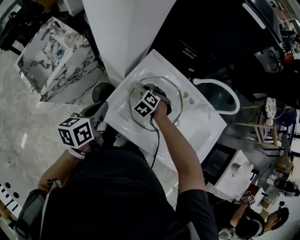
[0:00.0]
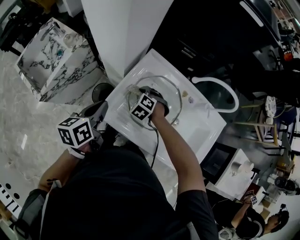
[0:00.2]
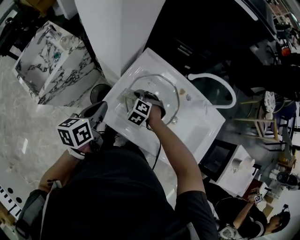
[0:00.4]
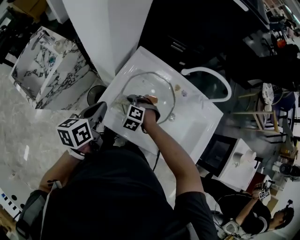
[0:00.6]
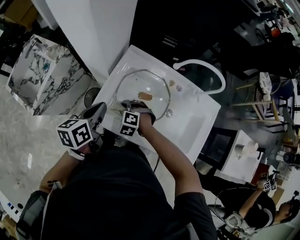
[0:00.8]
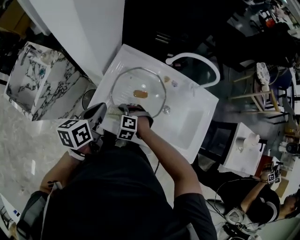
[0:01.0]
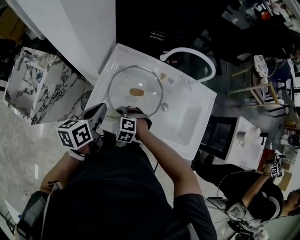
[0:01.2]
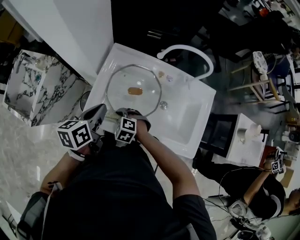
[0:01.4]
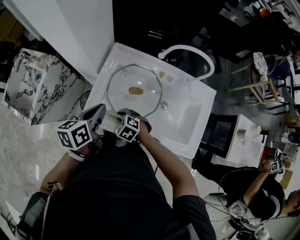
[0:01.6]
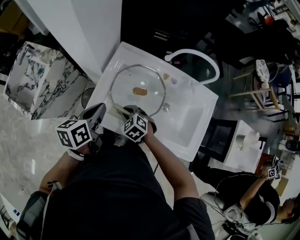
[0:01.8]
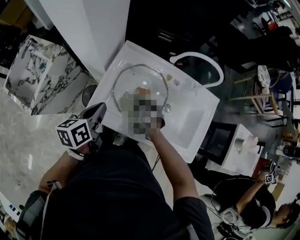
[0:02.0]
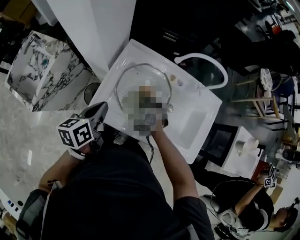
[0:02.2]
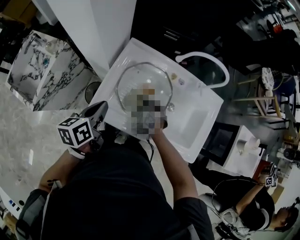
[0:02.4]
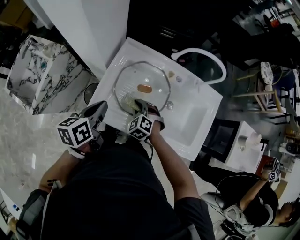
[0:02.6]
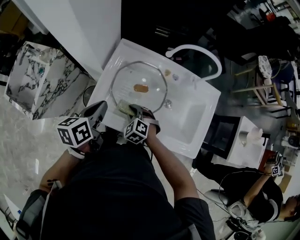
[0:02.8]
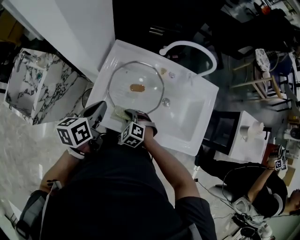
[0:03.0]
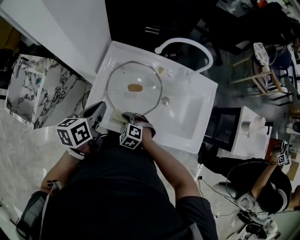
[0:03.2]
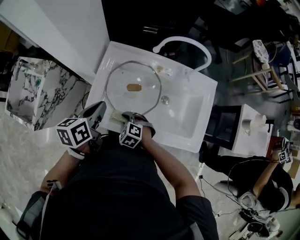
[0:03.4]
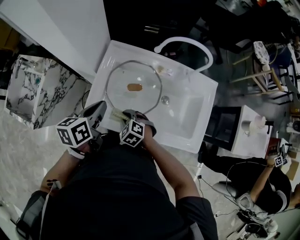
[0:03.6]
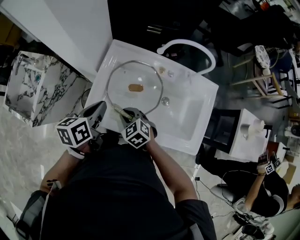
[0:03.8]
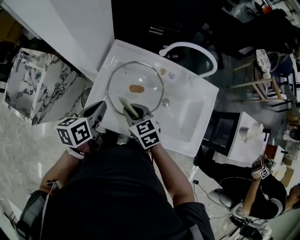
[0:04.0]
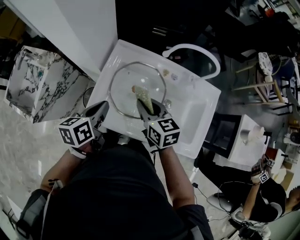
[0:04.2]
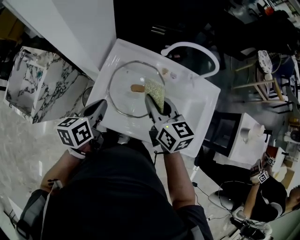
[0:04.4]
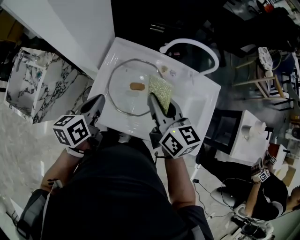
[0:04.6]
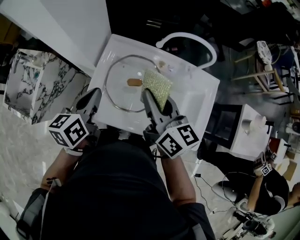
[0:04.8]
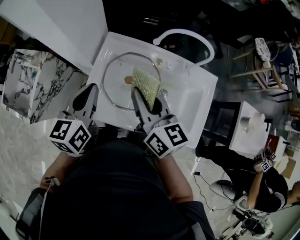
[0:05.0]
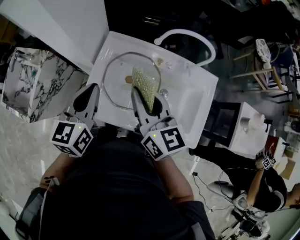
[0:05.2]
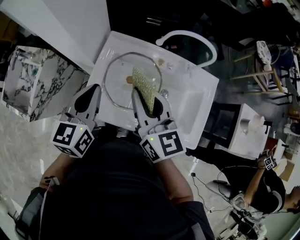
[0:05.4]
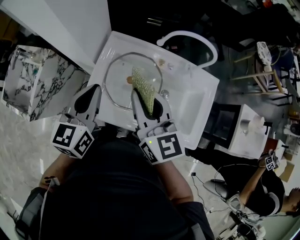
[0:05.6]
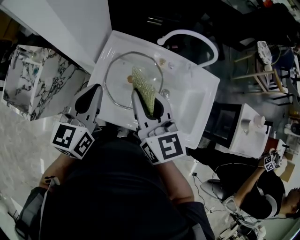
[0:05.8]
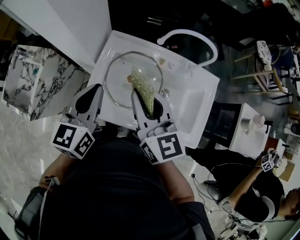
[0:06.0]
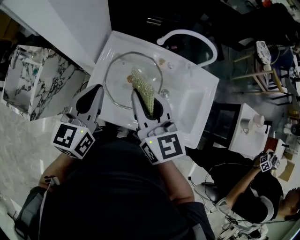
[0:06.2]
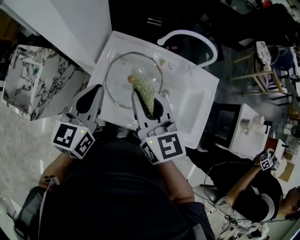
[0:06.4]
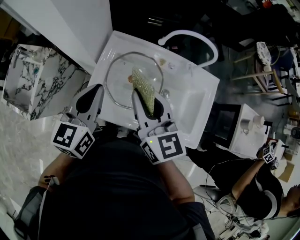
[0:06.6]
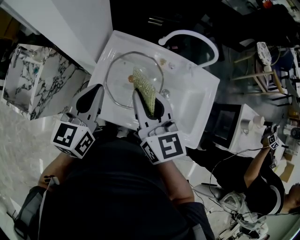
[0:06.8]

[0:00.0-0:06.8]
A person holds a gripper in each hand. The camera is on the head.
0:00.0 to 0:01.4: The left gripper travels to the right by some 10 cm. Meanwhile the right gripper moves backward, about 15 cm.
0:01.4 to 0:02.8: The right gripper goes forward and returns, roughly 10 cm each way.
0:02.8 to 0:04.0: The right gripper heads upward, covering some 10 cm, and changes its angle by some 40 degrees.
0:04.0 to 0:05.4: The left gripper goes some 10 cm upward, and swivels approximately 30 degrees, while the right gripper travels upward by about 20 cm, and points its fingers approximately 30 degrees further upward.
0:05.4 to 0:06.8: The grippers move only a little.

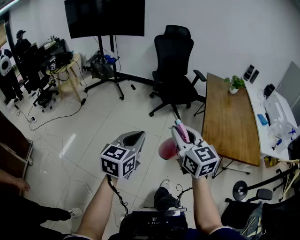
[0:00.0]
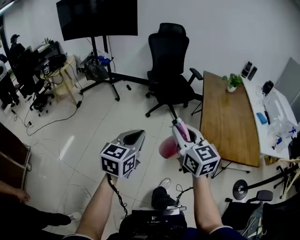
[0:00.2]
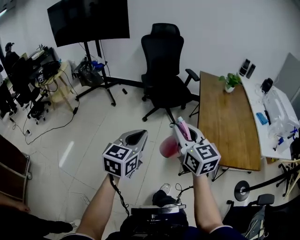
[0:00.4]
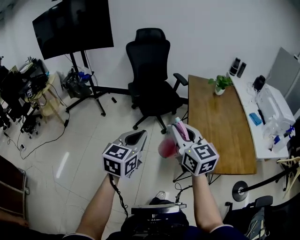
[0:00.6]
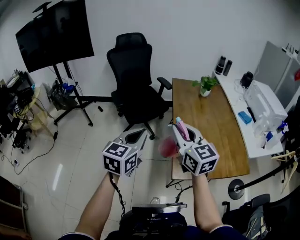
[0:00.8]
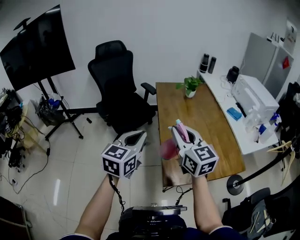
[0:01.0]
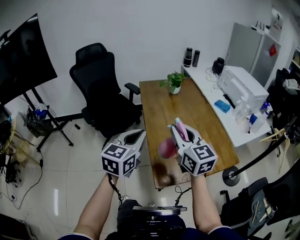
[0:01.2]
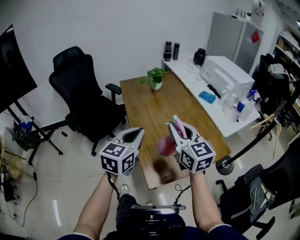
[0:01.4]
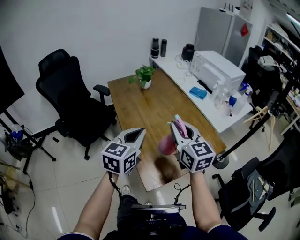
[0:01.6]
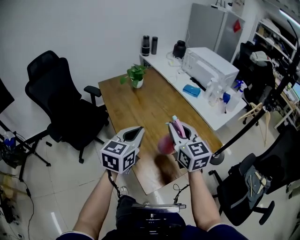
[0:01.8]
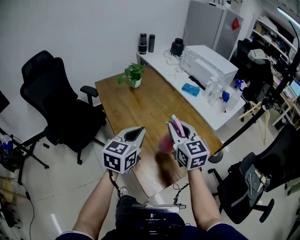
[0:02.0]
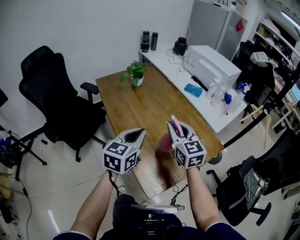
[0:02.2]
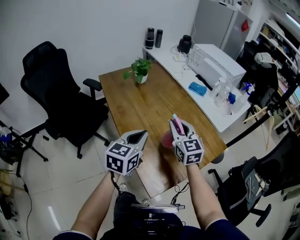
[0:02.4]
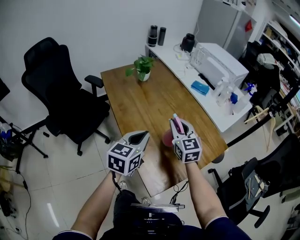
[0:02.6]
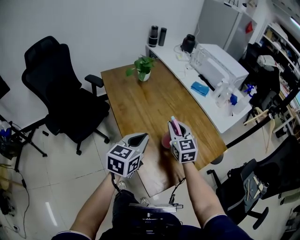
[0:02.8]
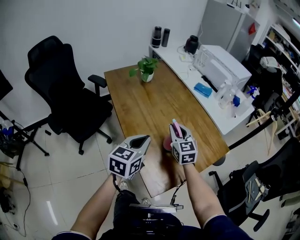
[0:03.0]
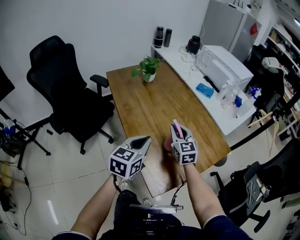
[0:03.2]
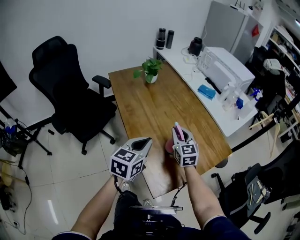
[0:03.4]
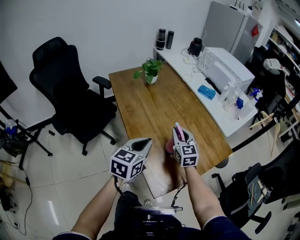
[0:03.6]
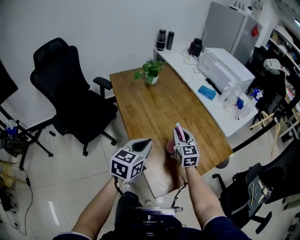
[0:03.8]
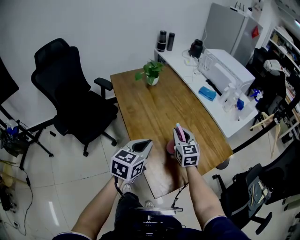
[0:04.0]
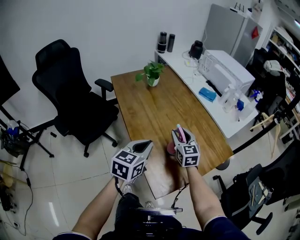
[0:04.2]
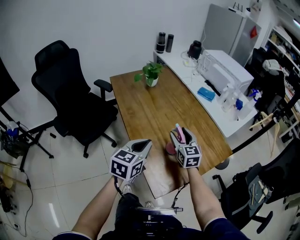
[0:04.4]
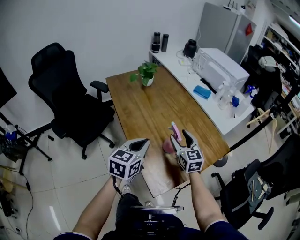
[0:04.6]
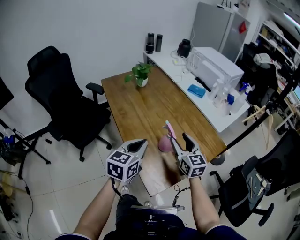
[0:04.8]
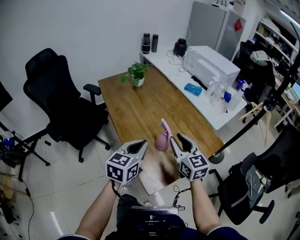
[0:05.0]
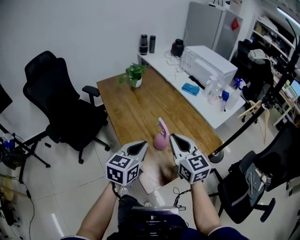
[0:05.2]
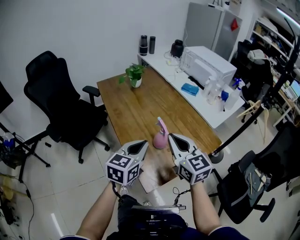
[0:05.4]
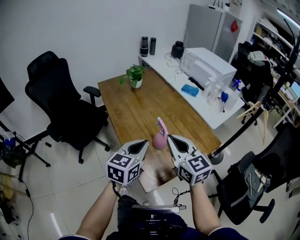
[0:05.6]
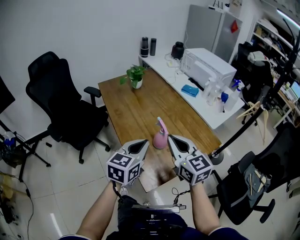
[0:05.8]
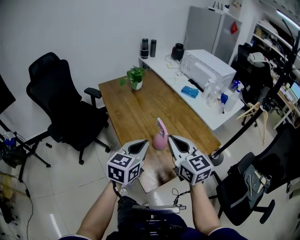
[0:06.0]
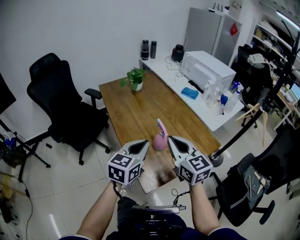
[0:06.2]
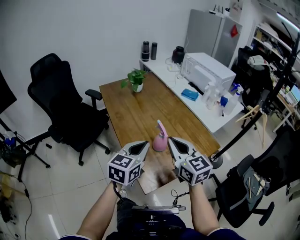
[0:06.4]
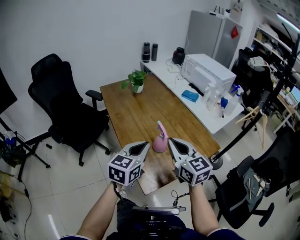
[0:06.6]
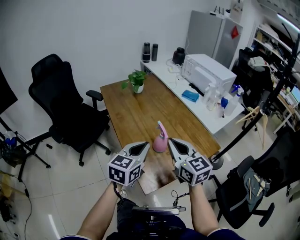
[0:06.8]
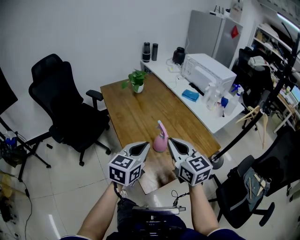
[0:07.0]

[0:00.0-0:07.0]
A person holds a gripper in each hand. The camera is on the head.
0:00.0 to 0:01.4: The two grippers travel together, some 50 cm. The left gripper changes its angle by about 40 degrees; the right gripper turns by about 40 degrees.
0:01.4 to 0:02.8: The right gripper moves downward and forward, approximately 20 cm, and turns by roughly 20 degrees. The left gripper travels downward and forward by roughly 10 cm.
0:02.8 to 0:04.2: The grippers make only small movements.
0:04.2 to 0:05.6: The left gripper shifts some 5 cm to the right, while the right gripper travels backward and upward by about 20 cm, and closes up.
0:05.6 to 0:07.0: The two grippers keep their place.

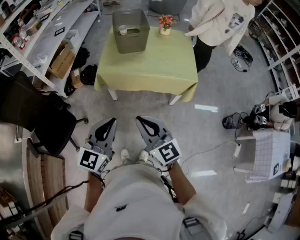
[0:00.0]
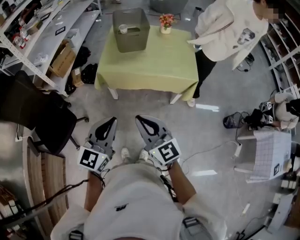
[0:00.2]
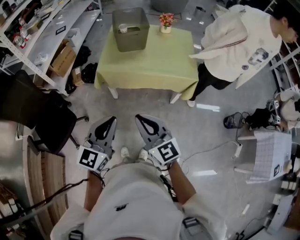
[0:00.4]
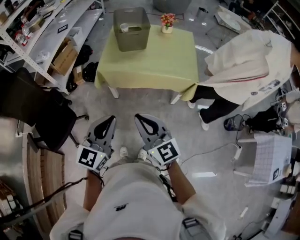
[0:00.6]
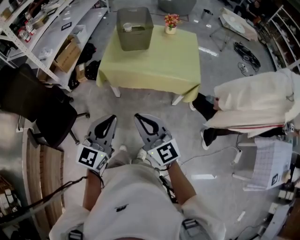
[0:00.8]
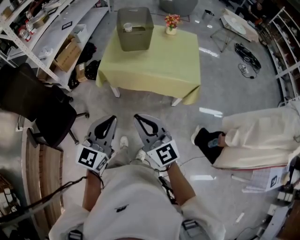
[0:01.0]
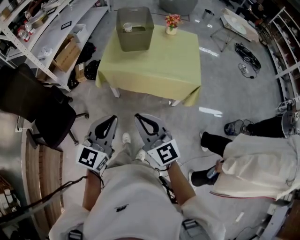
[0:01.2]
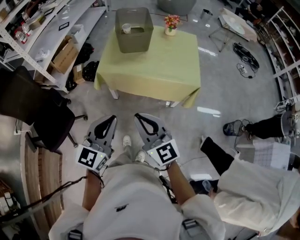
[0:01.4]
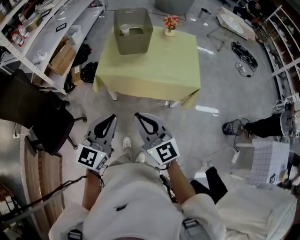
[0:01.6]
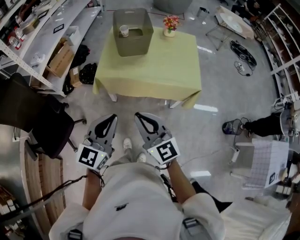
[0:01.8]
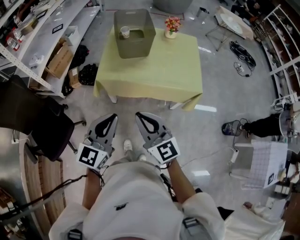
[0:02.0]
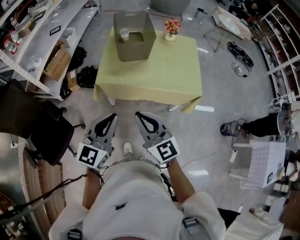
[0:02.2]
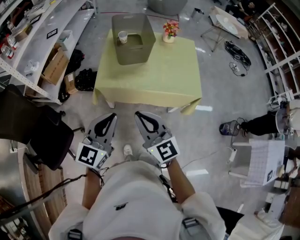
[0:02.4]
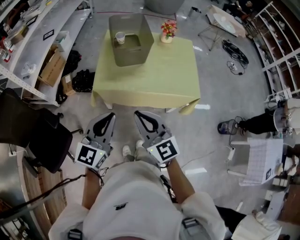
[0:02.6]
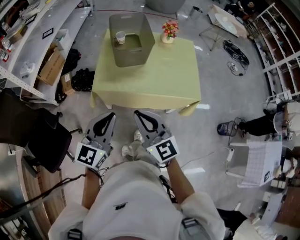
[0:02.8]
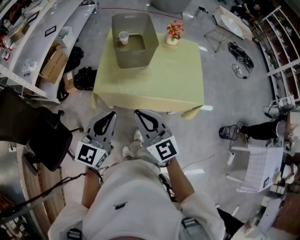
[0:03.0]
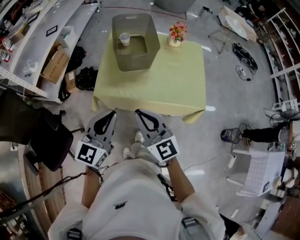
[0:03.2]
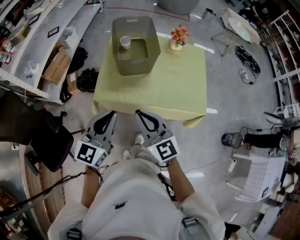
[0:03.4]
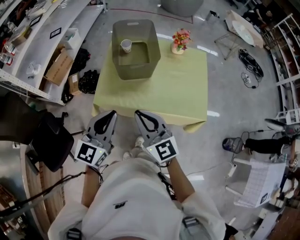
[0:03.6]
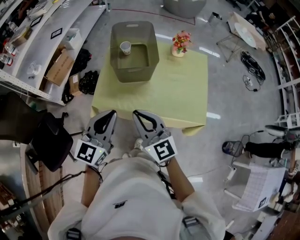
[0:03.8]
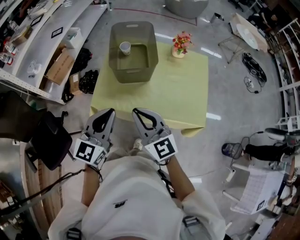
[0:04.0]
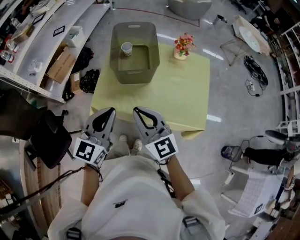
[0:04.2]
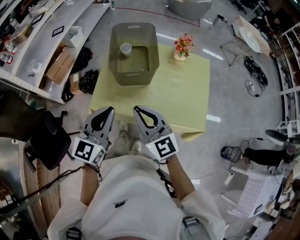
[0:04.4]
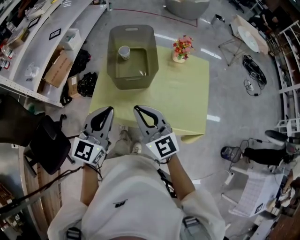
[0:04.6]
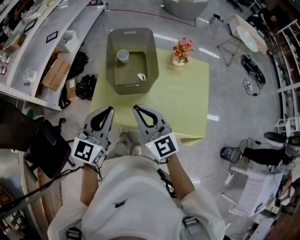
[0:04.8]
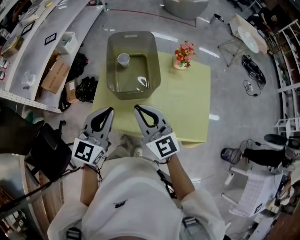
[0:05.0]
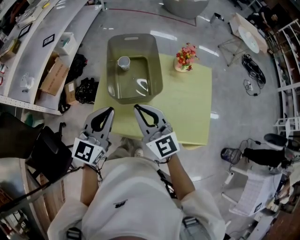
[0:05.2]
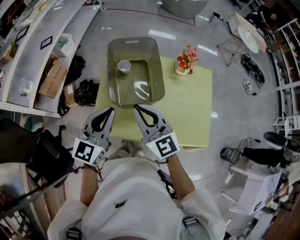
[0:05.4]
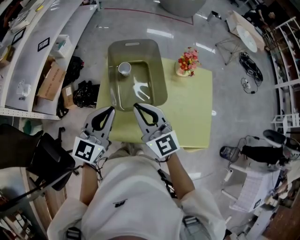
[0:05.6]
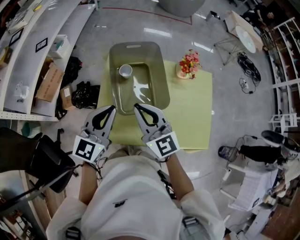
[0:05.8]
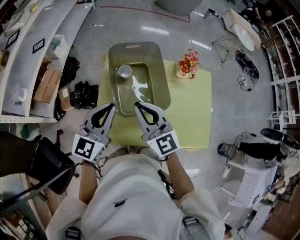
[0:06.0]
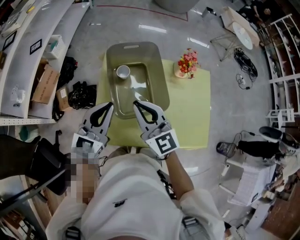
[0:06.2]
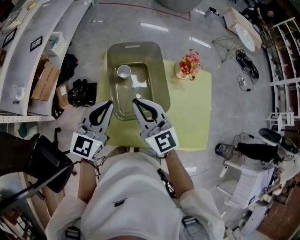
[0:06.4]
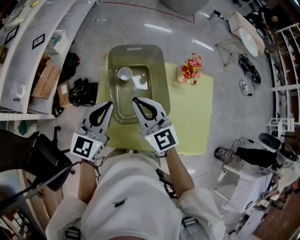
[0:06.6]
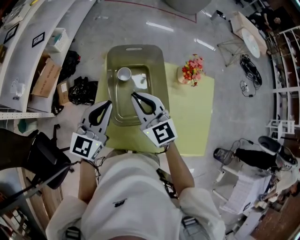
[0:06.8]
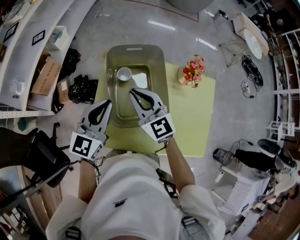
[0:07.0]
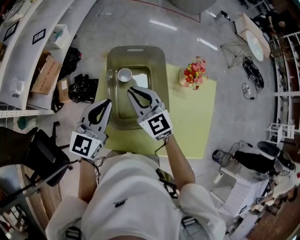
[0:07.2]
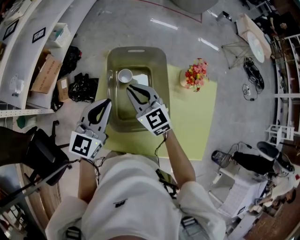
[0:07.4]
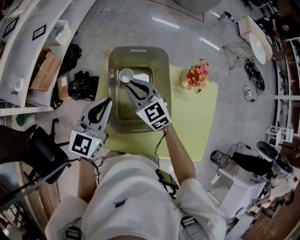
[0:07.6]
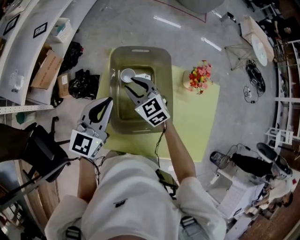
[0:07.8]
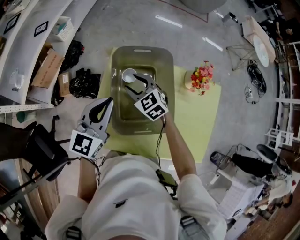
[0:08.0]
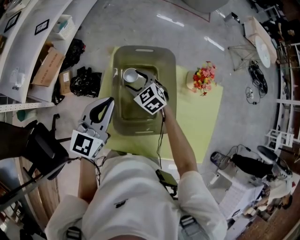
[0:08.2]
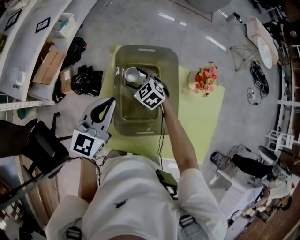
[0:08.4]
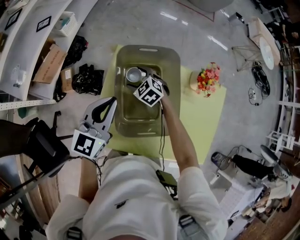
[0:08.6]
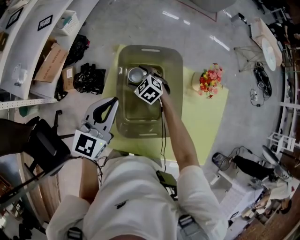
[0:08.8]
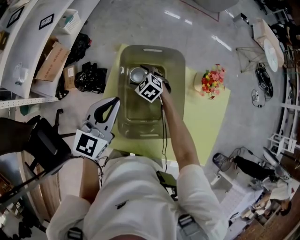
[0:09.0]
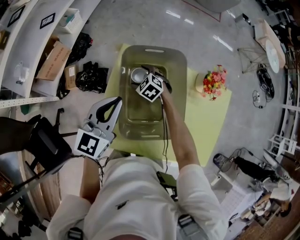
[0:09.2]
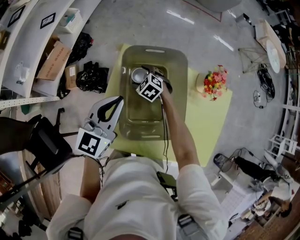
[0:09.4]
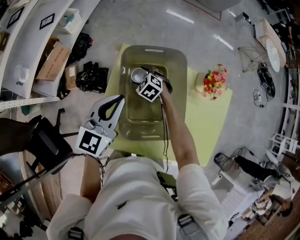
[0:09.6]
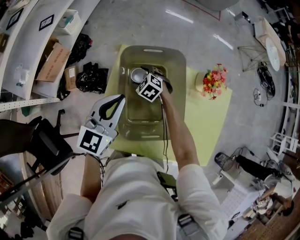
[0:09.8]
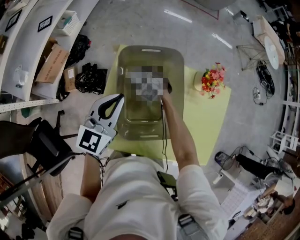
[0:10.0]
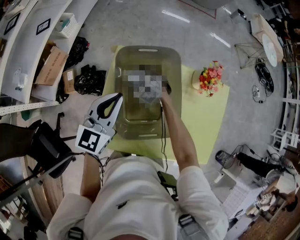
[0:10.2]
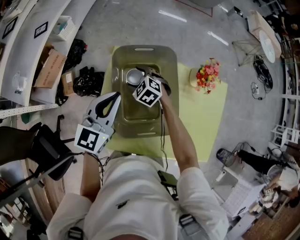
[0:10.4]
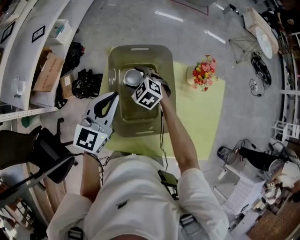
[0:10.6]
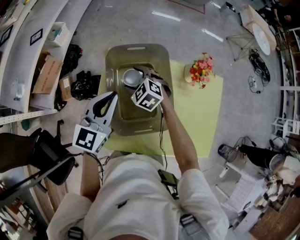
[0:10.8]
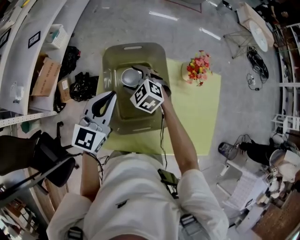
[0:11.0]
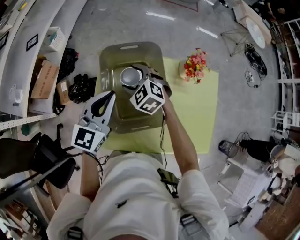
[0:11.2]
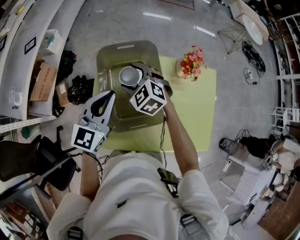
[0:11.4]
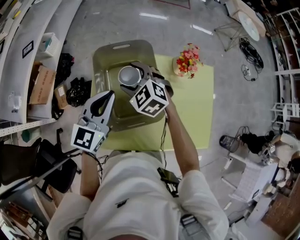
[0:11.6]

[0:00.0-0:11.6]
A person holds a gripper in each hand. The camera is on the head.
0:00.0 to 0:01.4: The right gripper shifts by some 5 cm, while the left gripper ends up roughly 5 cm from where it was.
0:01.4 to 0:02.8: Both grippers move forward, approximately 20 cm.
0:02.8 to 0:04.4: The two grippers go roughly 20 cm forward.
0:04.4 to 0:05.8: The grippers both shift forward by roughly 25 cm.
0:05.8 to 0:07.2: The right gripper goes roughly 15 cm forward and downward, while the left gripper shifts about 10 cm forward.
0:07.2 to 0:08.8: The right gripper is displaced downward and forward by some 25 cm, tilts its fingers about 40 degrees downward, and opens its fingers, while the left gripper moves approximately 5 cm.
0:08.8 to 0:10.2: The grippers move only a little.
0:10.2 to 0:11.6: The right gripper is displaced upward by some 15 cm; the left gripper moves approximately 5 cm.
